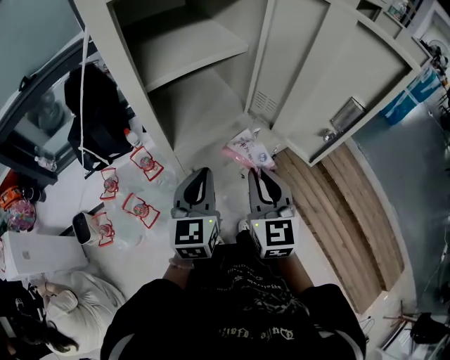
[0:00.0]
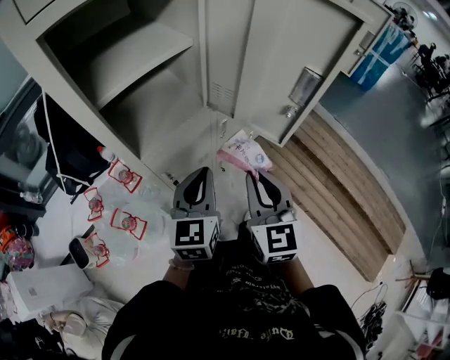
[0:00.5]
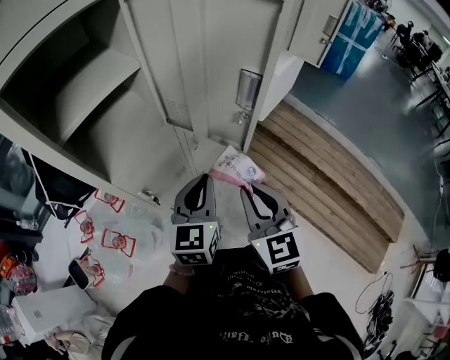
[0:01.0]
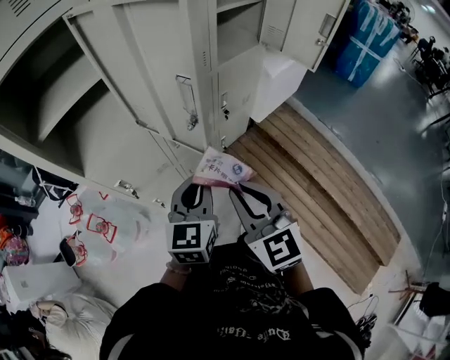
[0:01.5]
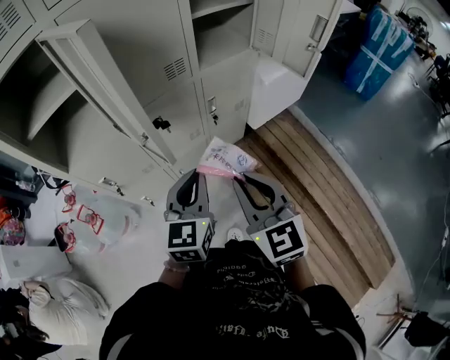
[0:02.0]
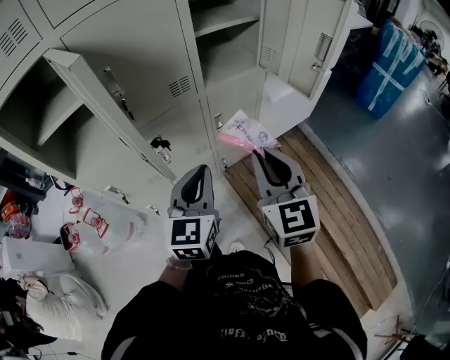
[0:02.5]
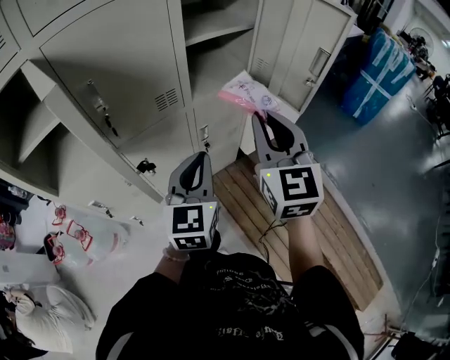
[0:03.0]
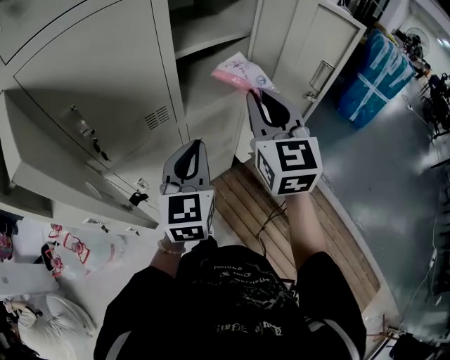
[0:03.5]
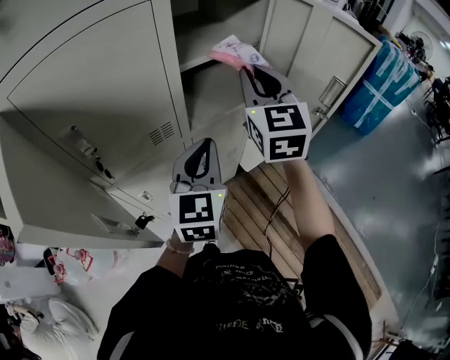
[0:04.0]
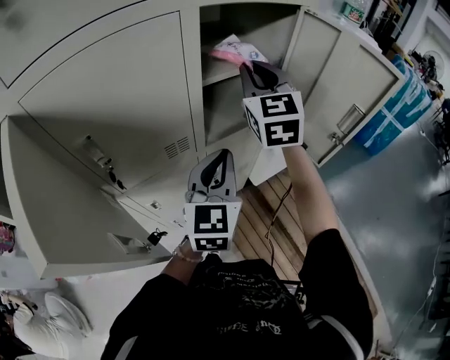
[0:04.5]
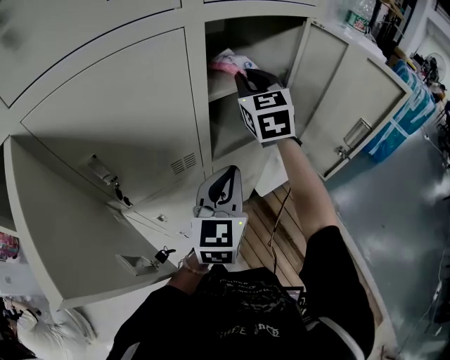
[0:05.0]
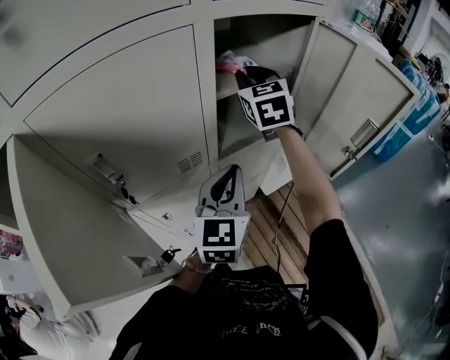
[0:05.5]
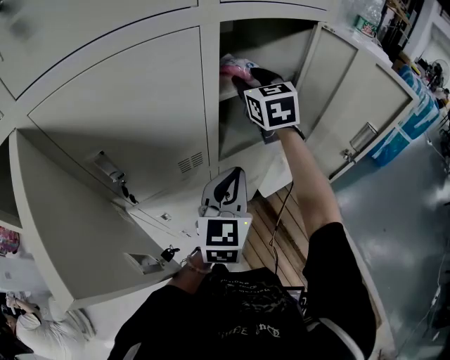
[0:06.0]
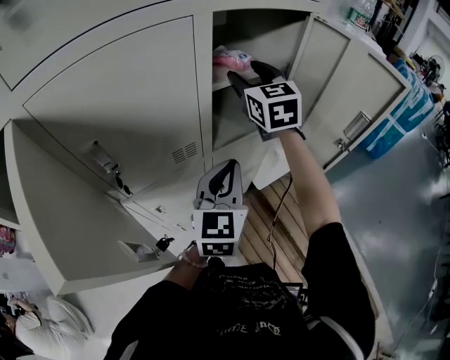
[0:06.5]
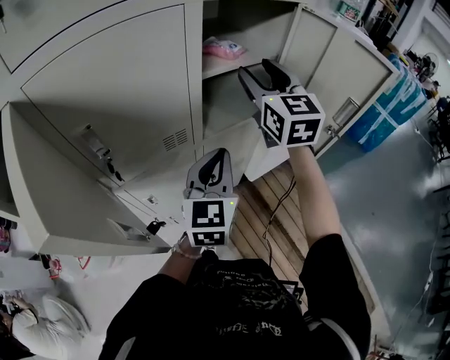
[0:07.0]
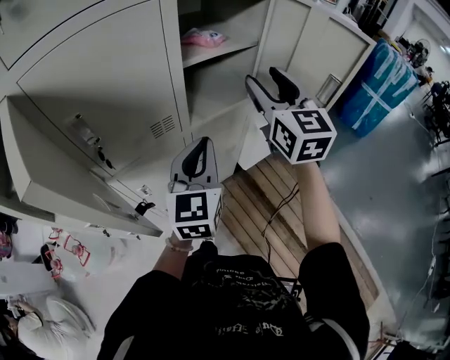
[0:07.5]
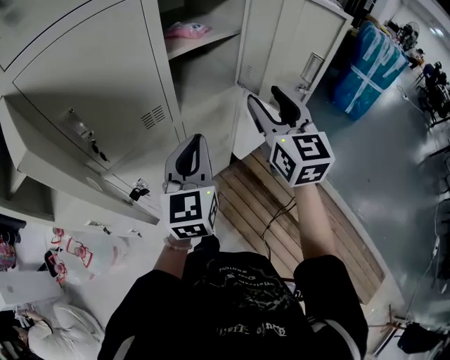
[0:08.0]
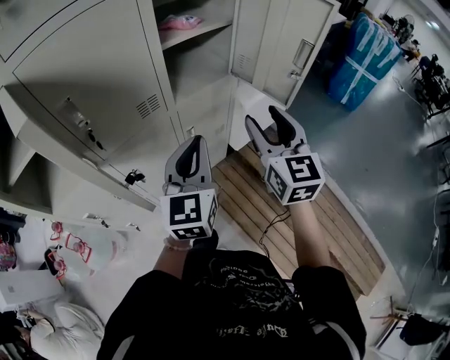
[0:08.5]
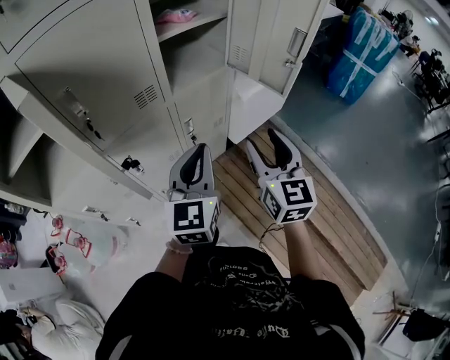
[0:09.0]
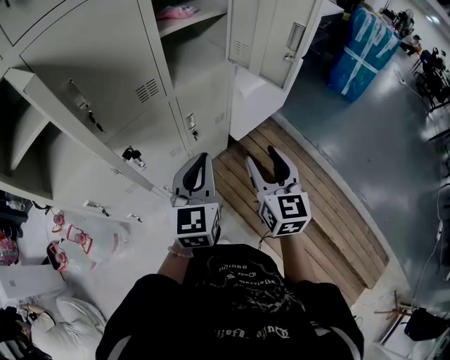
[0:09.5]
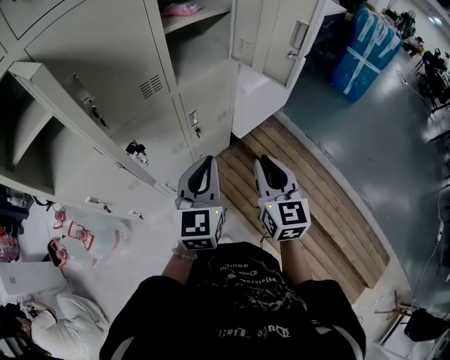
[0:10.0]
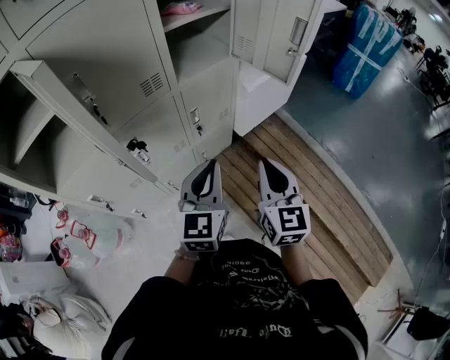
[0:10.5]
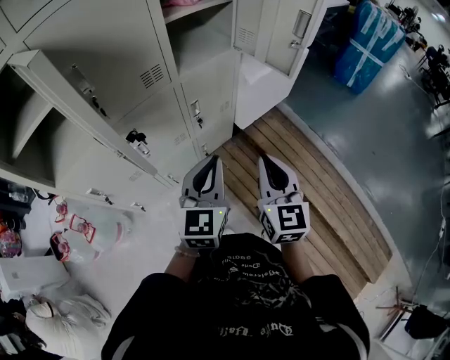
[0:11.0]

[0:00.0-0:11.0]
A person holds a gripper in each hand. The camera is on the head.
0:00.0 to 0:02.0: The two grippers go some 35 cm to the right.
0:02.0 to 0:03.5: The two grippers go roughly 25 cm forward and upward.
0:03.5 to 0:05.5: The right gripper heads forward, covering roughly 25 cm. The left gripper moves forward, approximately 10 cm.
0:05.5 to 0:07.5: The right gripper goes about 20 cm backward and to the right, and opens its fingers, while the left gripper moves backward, approximately 5 cm.
0:07.5 to 0:09.0: The right gripper moves backward and downward, roughly 25 cm. The left gripper is displaced backward by approximately 10 cm.
0:09.0 to 0:11.0: The grippers both shift backward and downward by approximately 10 cm. The right gripper closes its fingers.

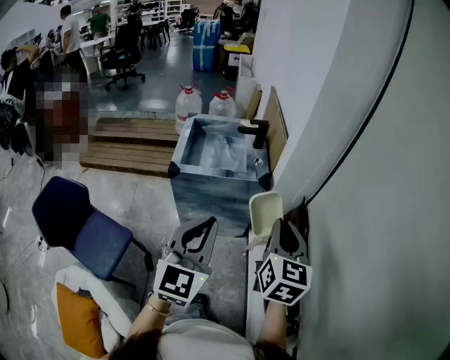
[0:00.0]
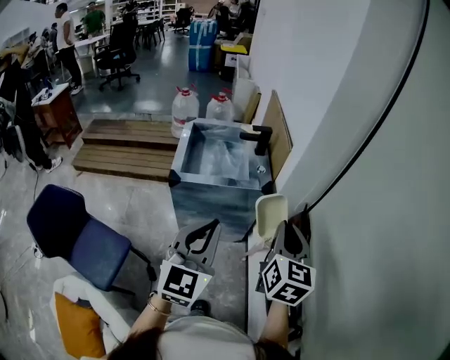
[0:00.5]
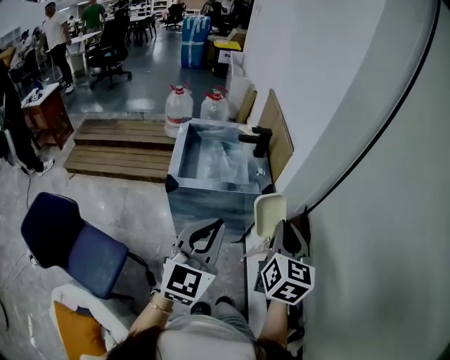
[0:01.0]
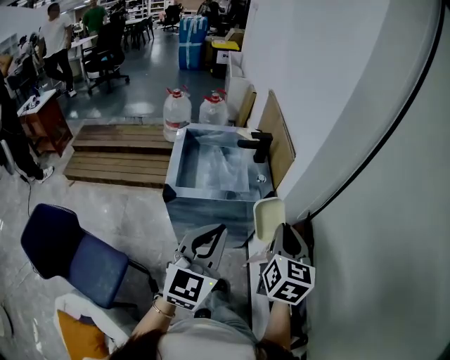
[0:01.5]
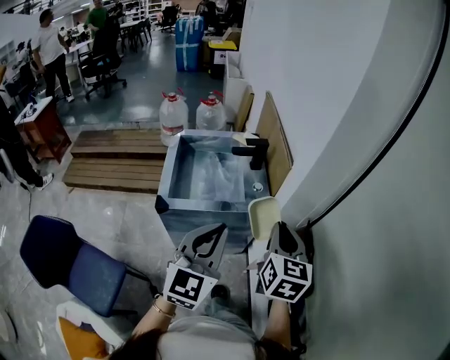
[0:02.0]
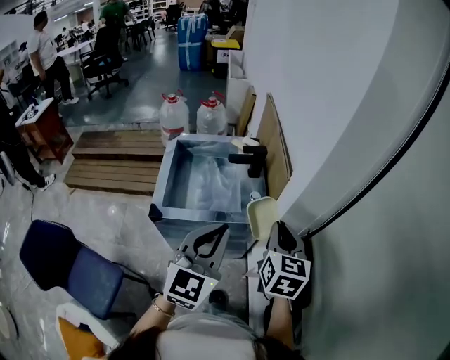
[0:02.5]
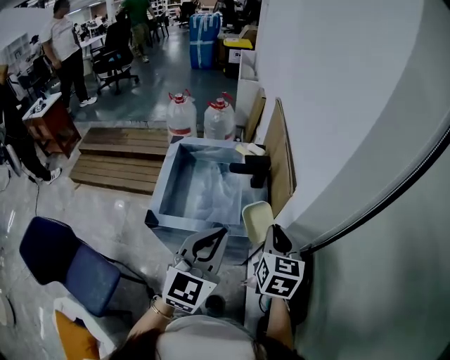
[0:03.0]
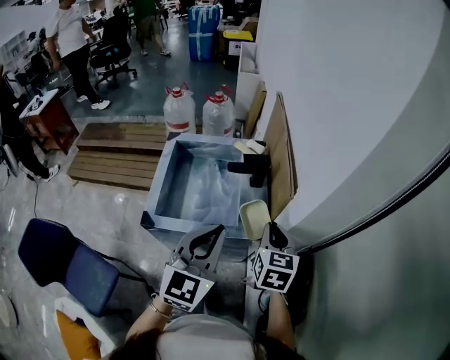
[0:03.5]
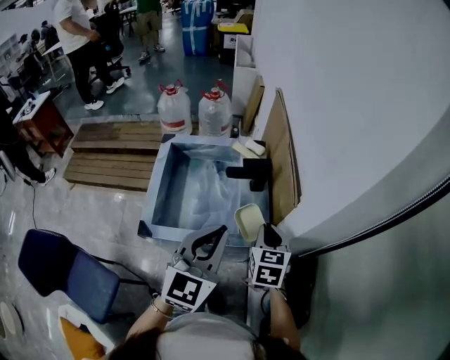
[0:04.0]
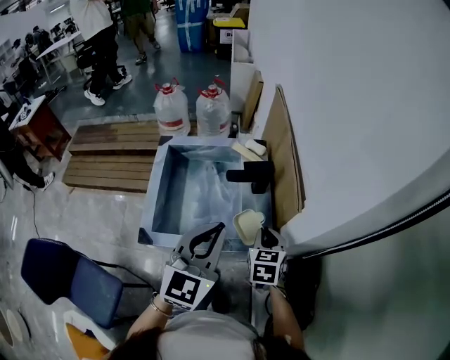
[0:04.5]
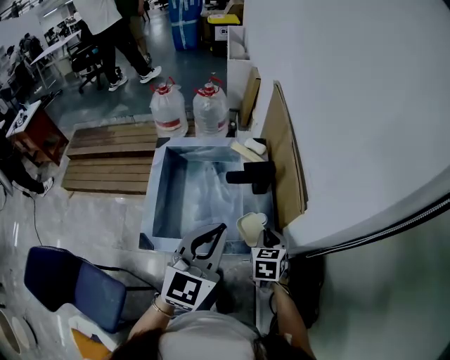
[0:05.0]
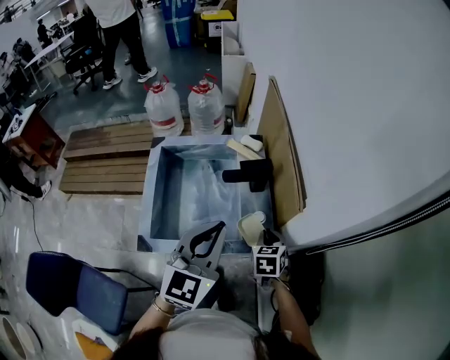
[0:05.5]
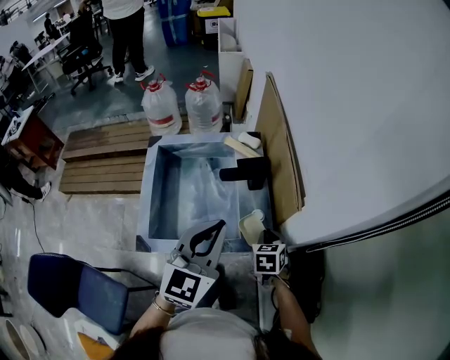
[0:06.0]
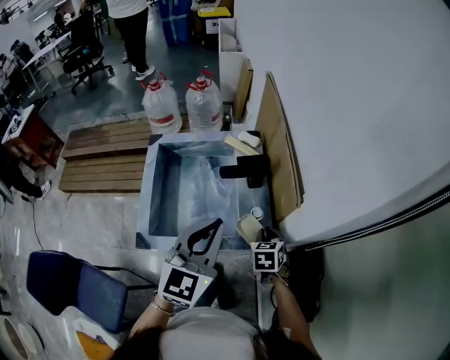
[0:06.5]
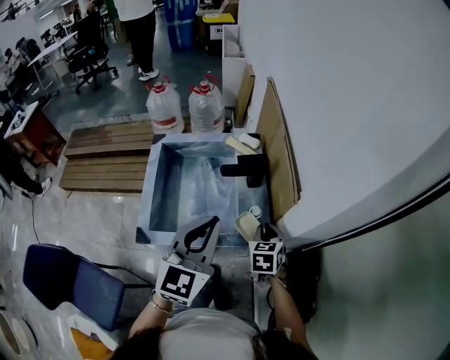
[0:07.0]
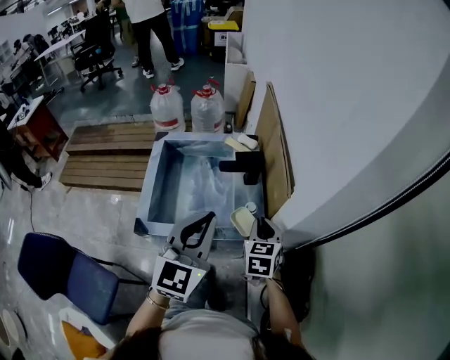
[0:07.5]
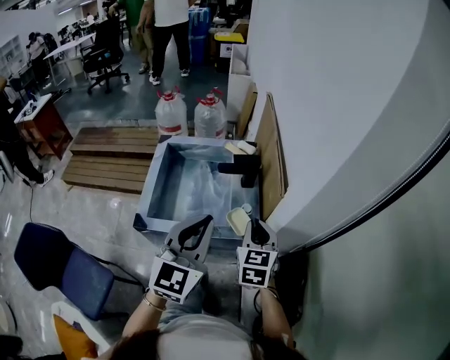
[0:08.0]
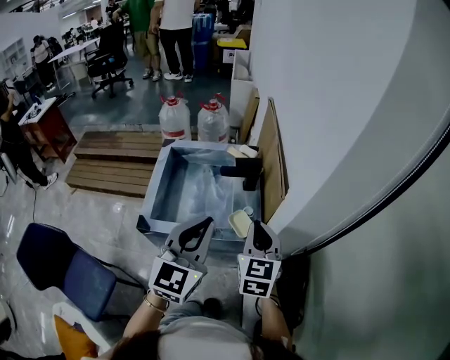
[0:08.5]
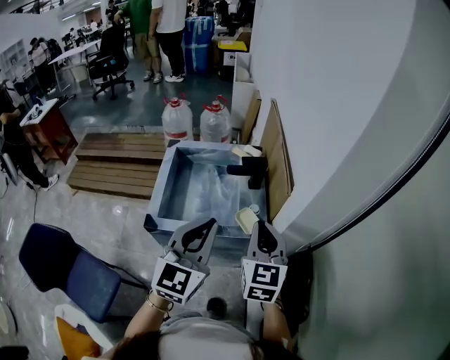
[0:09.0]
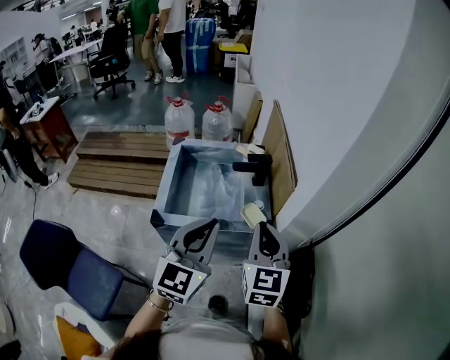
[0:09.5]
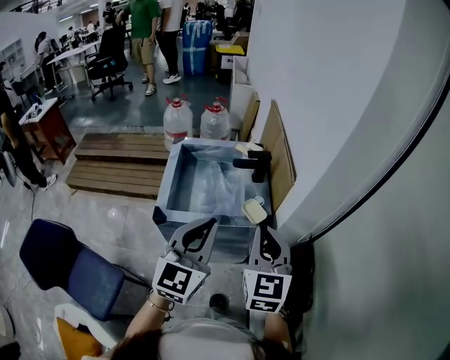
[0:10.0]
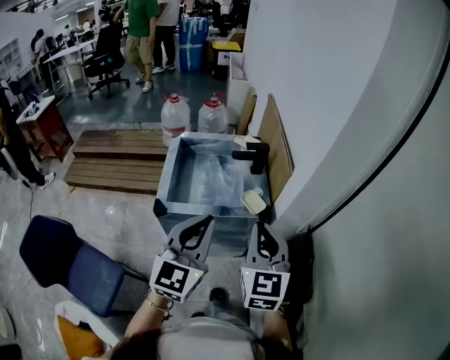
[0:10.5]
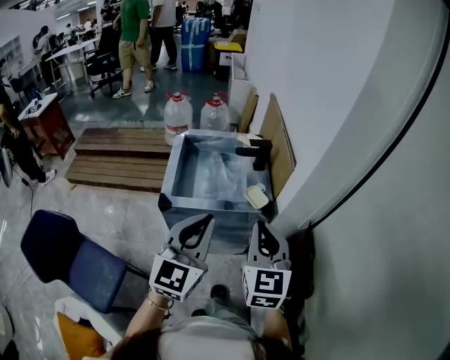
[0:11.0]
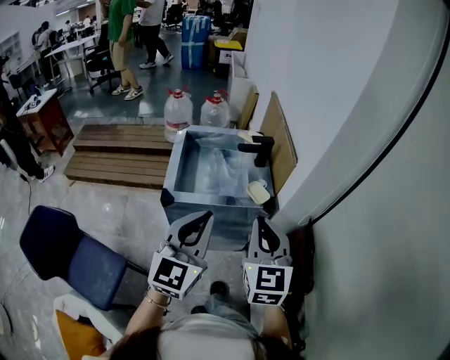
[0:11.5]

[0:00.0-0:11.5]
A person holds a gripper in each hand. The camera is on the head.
0:00.0 to 0:02.0: Both grippers move forward, roughly 20 cm.
0:02.0 to 0:04.0: The right gripper travels forward and downward by roughly 25 cm, while the left gripper is displaced forward by some 20 cm.
0:04.0 to 0:06.0: The left gripper travels forward by some 5 cm. The right gripper heads downward, covering about 15 cm.
0:06.0 to 0:07.5: The left gripper goes roughly 5 cm backward. Meanwhile the right gripper goes approximately 10 cm upward.
0:07.5 to 0:09.5: The left gripper shifts approximately 10 cm backward. The right gripper moves upward and backward, about 20 cm, and rotates some 20 degrees.
0:09.5 to 0:11.5: Both grippers move backward, roughly 10 cm.

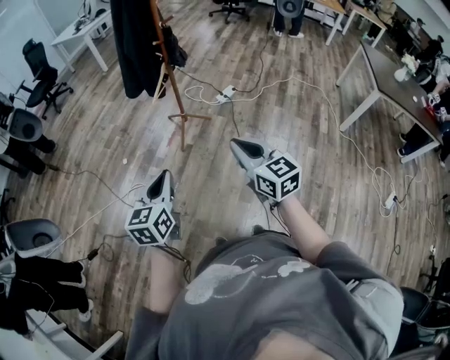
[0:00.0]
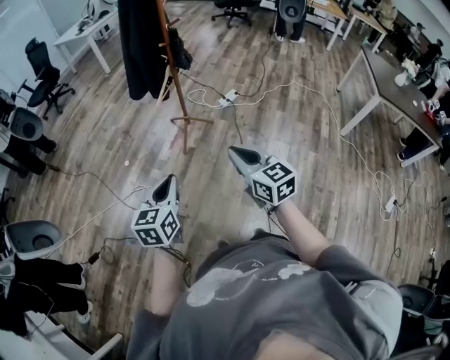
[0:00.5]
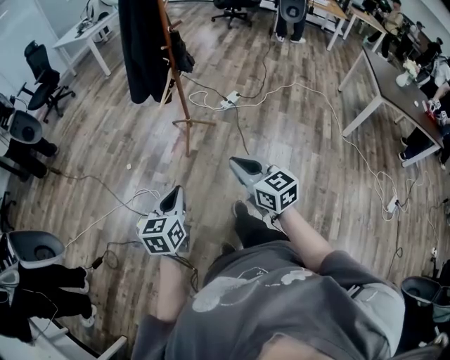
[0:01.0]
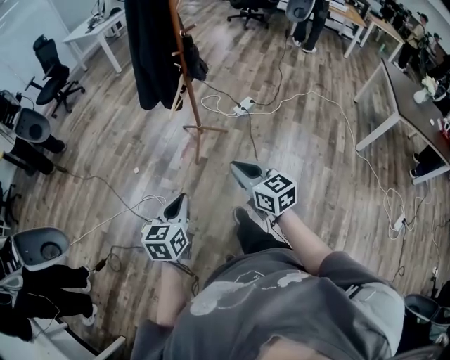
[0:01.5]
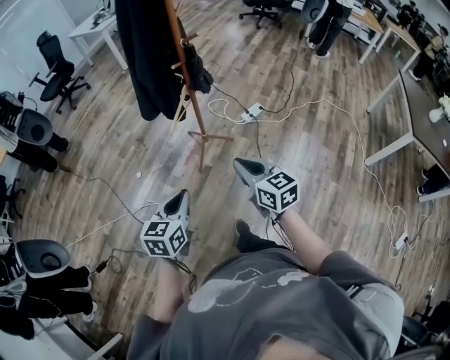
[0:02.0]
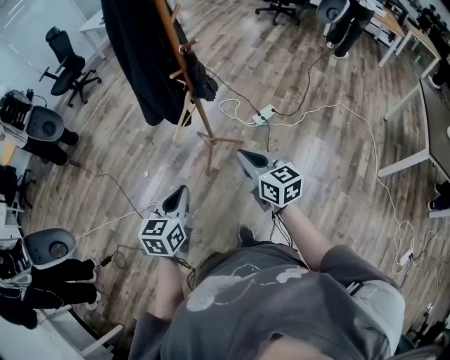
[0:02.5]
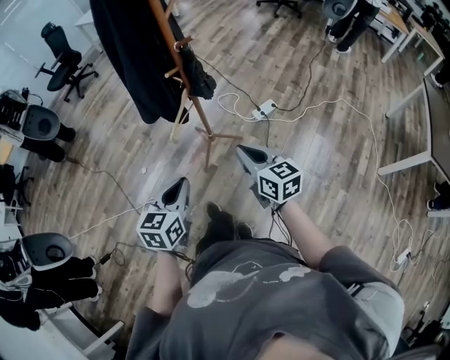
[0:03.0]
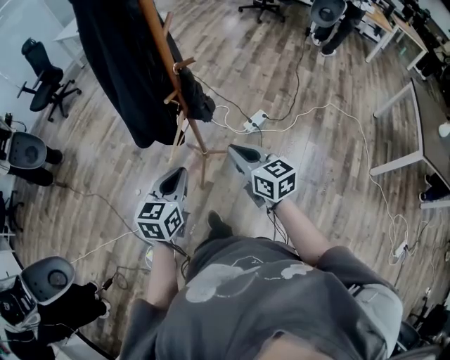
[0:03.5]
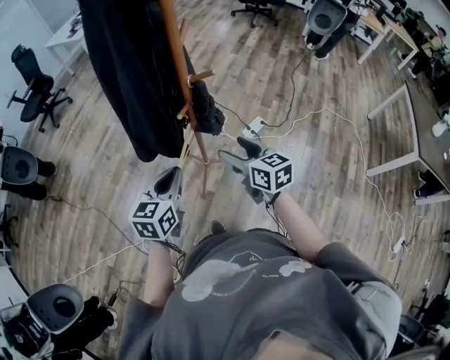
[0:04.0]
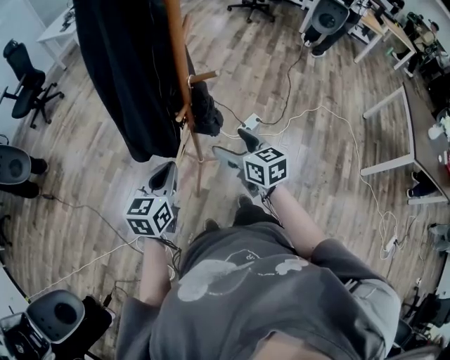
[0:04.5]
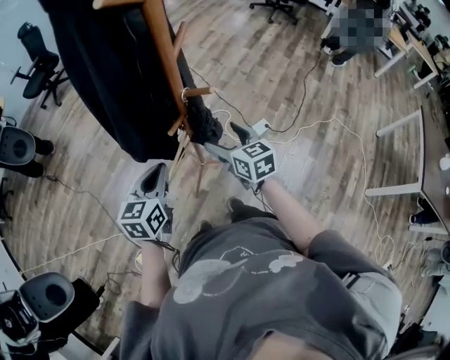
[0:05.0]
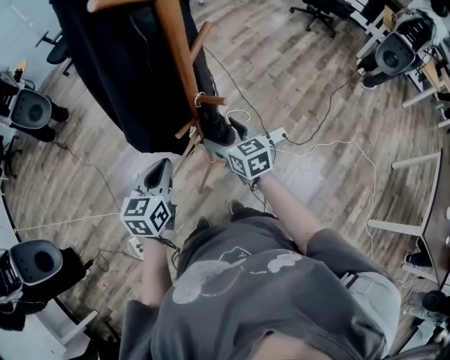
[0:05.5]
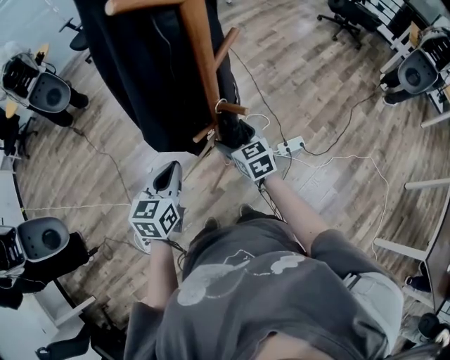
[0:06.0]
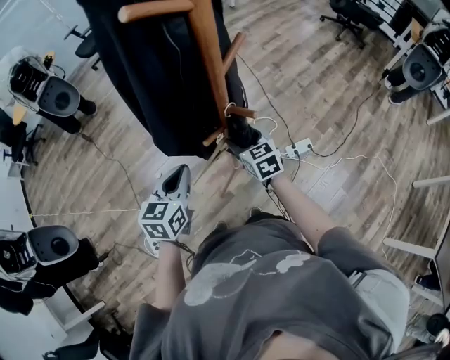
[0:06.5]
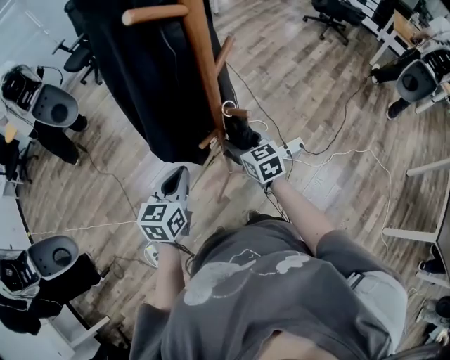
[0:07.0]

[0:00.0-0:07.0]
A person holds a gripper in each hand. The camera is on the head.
0:00.0 to 0:02.0: The two grippers go roughly 25 cm forward.
0:02.0 to 0:03.5: Both grippers travel together forward, approximately 25 cm.
0:03.5 to 0:05.0: Both grippers move forward, roughly 20 cm. The right gripper opens its fingers.
0:05.0 to 0:07.0: The right gripper shifts some 10 cm forward, and closes its fingers.
